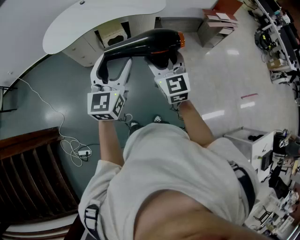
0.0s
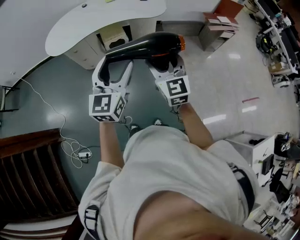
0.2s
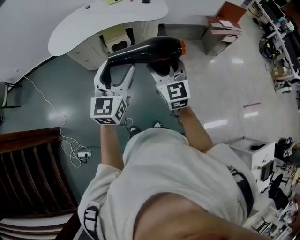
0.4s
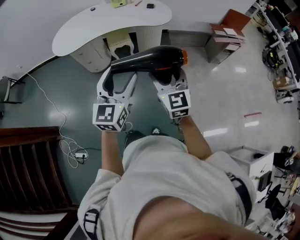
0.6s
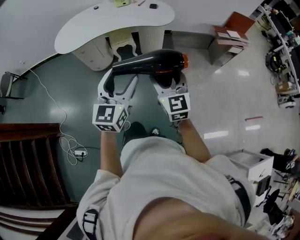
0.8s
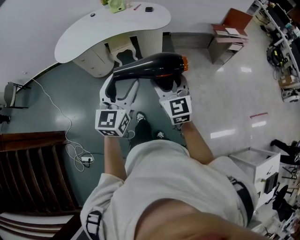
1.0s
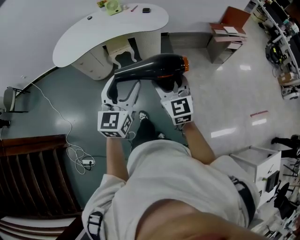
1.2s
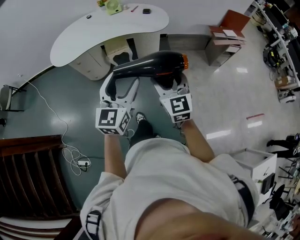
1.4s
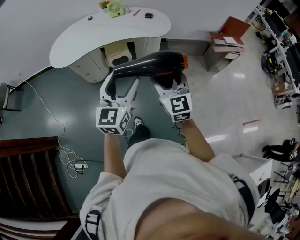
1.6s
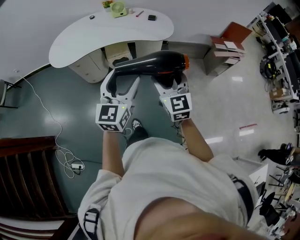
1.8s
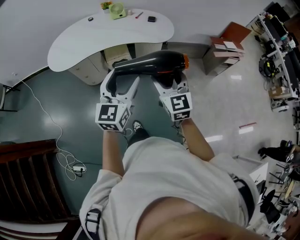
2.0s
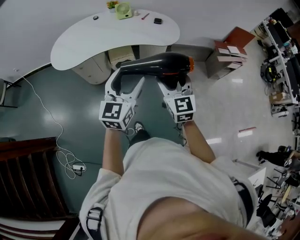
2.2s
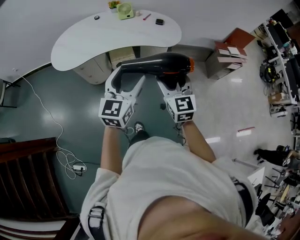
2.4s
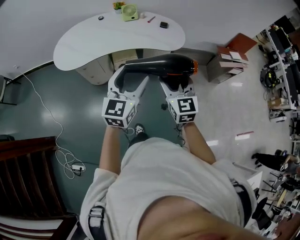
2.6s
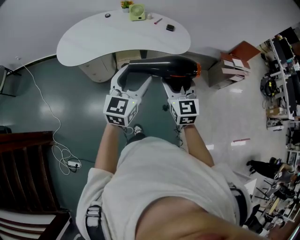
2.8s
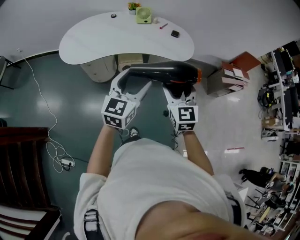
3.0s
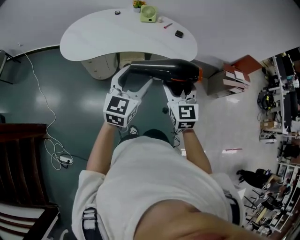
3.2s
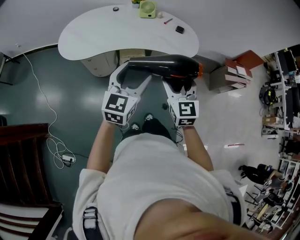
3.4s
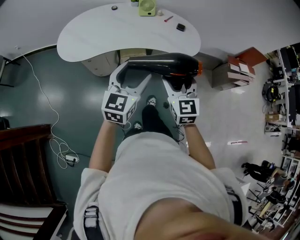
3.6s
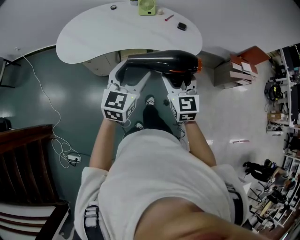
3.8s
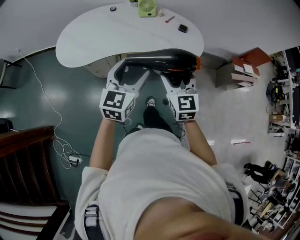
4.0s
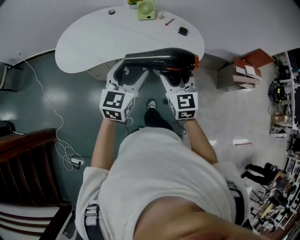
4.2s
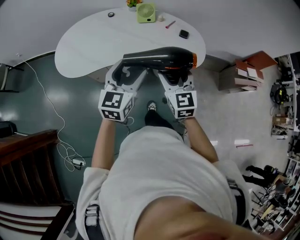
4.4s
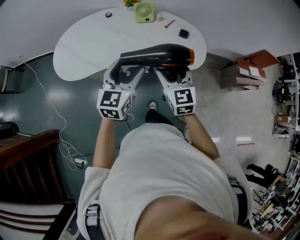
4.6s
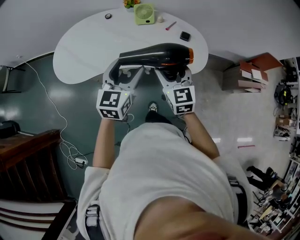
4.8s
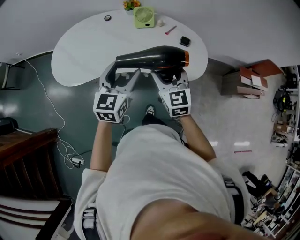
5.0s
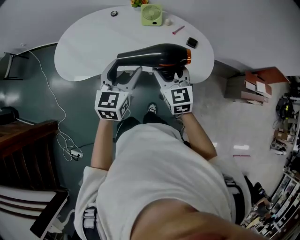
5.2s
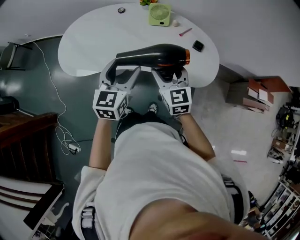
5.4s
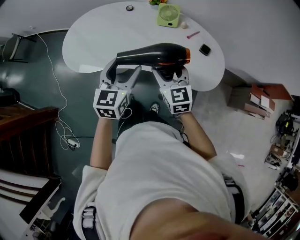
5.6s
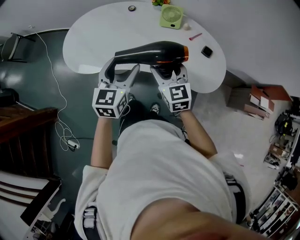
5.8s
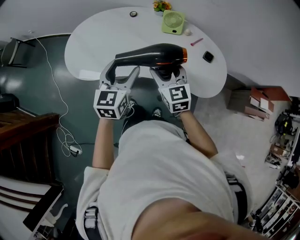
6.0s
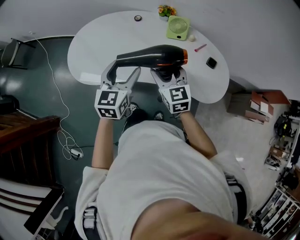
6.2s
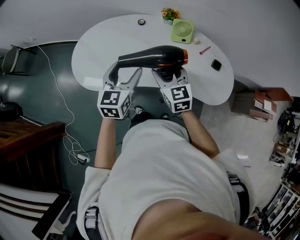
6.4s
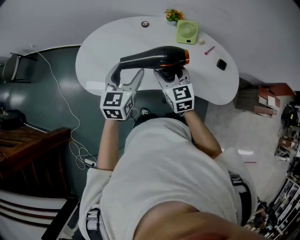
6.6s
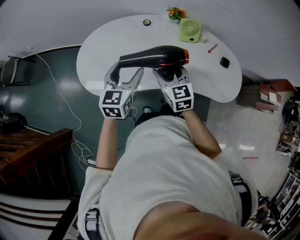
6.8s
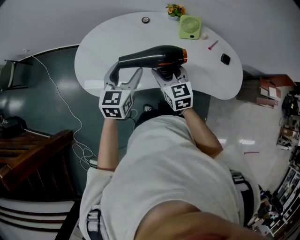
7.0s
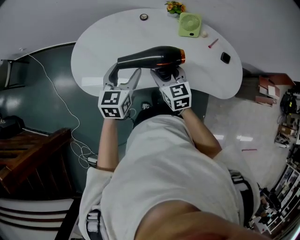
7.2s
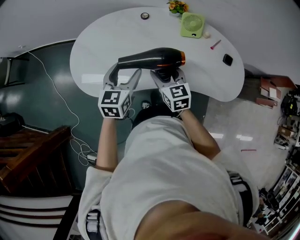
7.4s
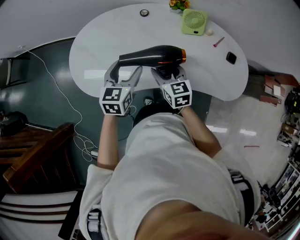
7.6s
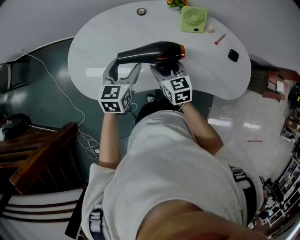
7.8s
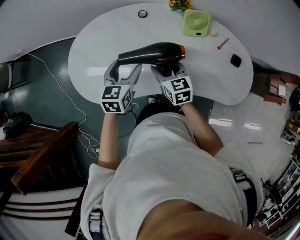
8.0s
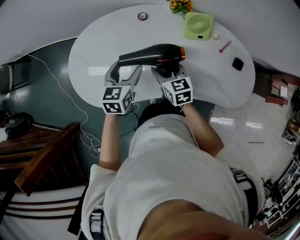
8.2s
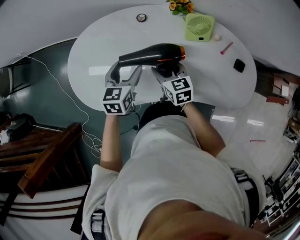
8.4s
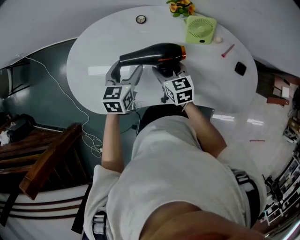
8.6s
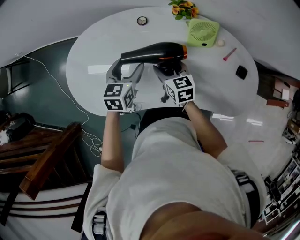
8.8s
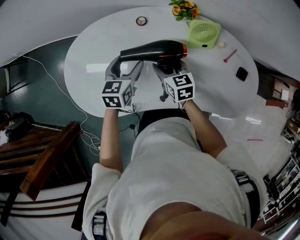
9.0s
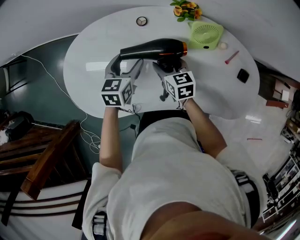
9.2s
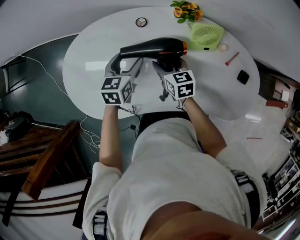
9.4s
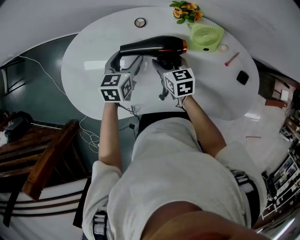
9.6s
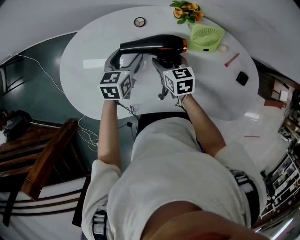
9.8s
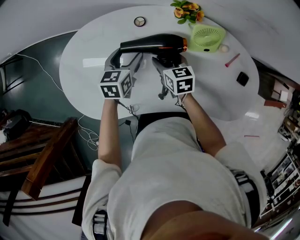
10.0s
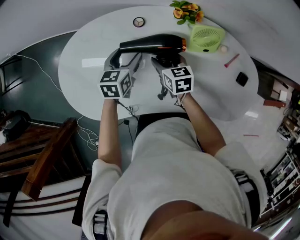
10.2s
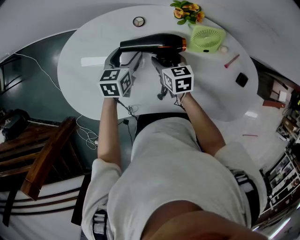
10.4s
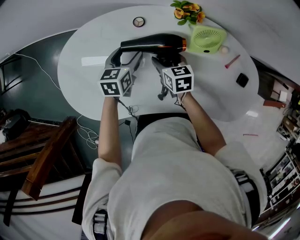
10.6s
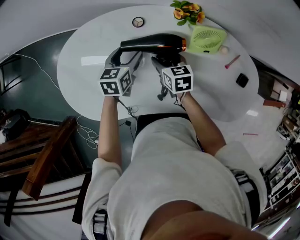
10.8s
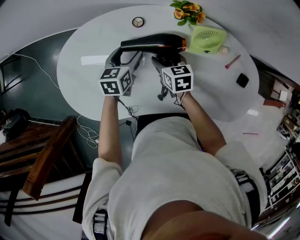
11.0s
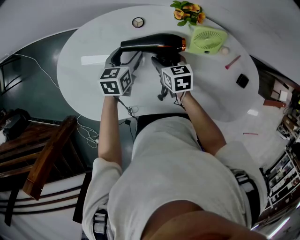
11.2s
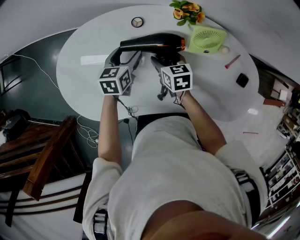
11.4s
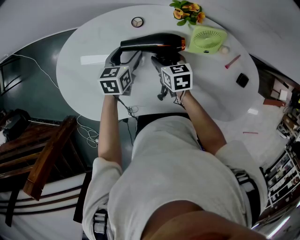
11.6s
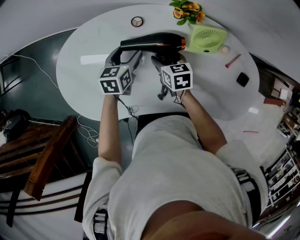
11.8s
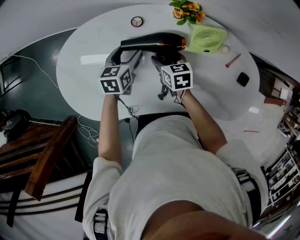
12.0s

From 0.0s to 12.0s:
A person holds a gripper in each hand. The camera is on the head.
From 0.0s to 1.6s: The grippers both shift to the right and forward by approximately 10 cm.
From 1.6s to 3.0s: The two grippers go roughly 20 cm forward and to the left.
From 3.0s to 4.4s: Both grippers travel together forward, approximately 20 cm.
From 4.4s to 6.0s: The two grippers go roughly 20 cm forward and to the left.
From 6.0s to 7.6s: The right gripper is displaced to the left, forward and downward by some 20 cm. Meanwhile the left gripper moves forward, to the left and downward, some 20 cm.
From 7.6s to 9.0s: The two grippers go approximately 20 cm forward and downward.
From 9.0s to 10.4s: The right gripper is displaced forward by roughly 5 cm. Meanwhile the left gripper shifts some 10 cm forward and downward.
From 10.4s to 12.0s: The grippers stay close to where they were, moving slightly.

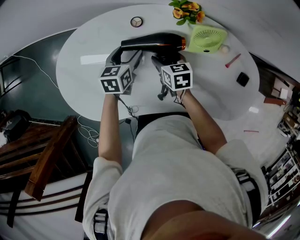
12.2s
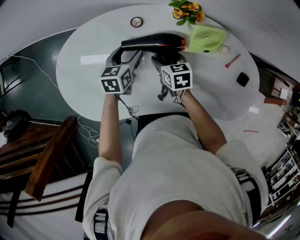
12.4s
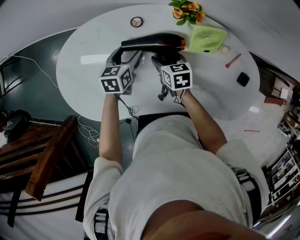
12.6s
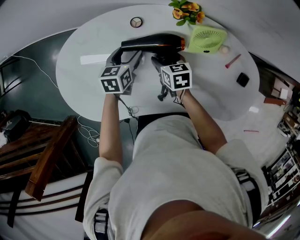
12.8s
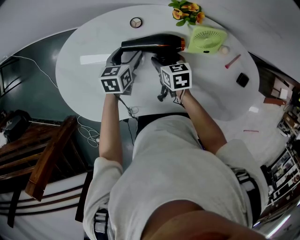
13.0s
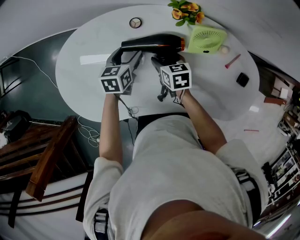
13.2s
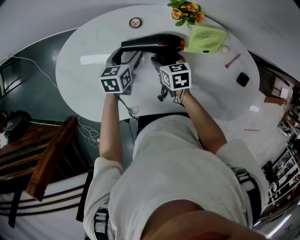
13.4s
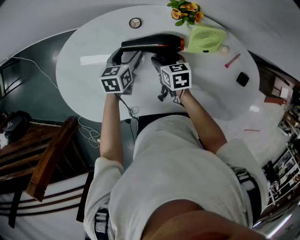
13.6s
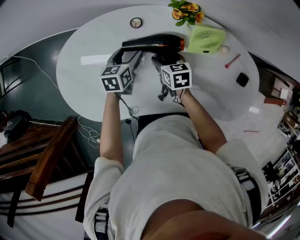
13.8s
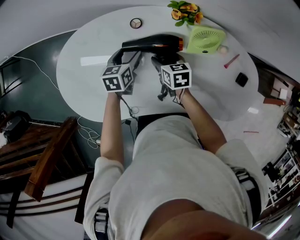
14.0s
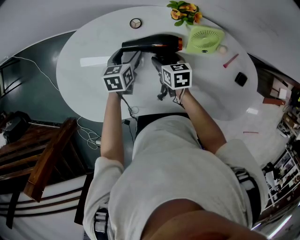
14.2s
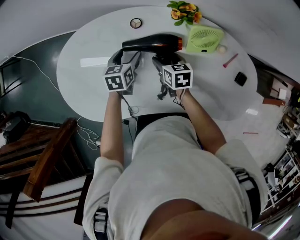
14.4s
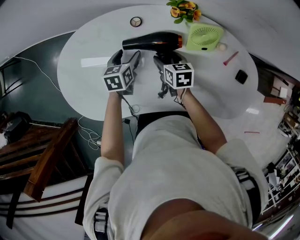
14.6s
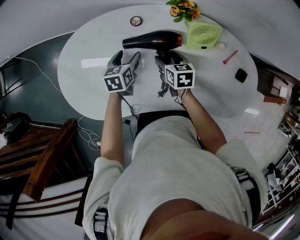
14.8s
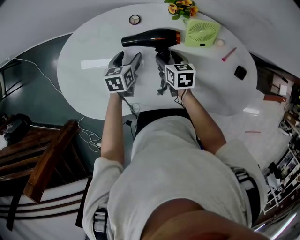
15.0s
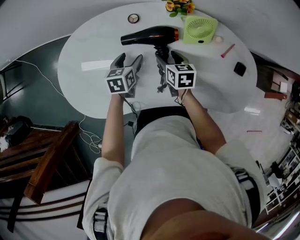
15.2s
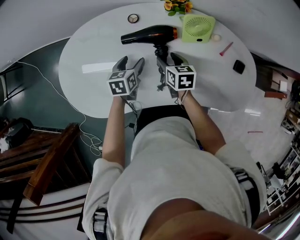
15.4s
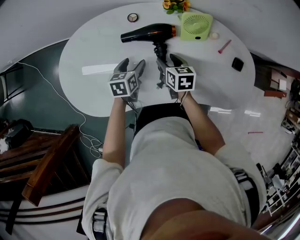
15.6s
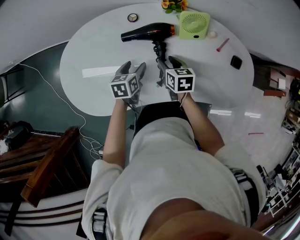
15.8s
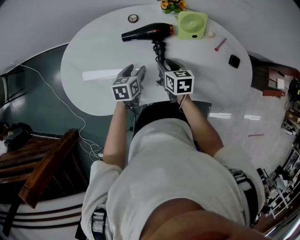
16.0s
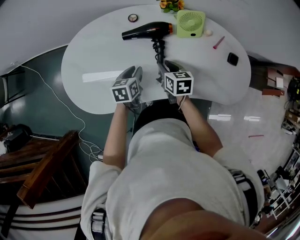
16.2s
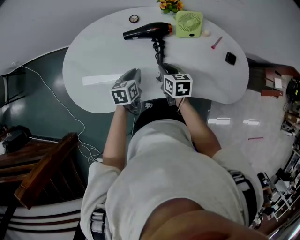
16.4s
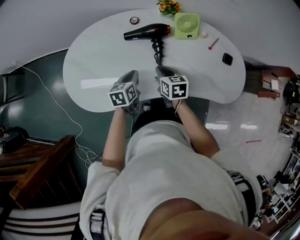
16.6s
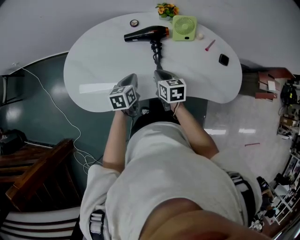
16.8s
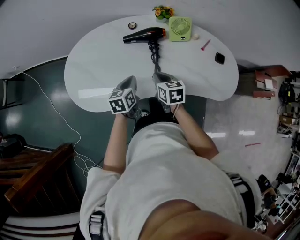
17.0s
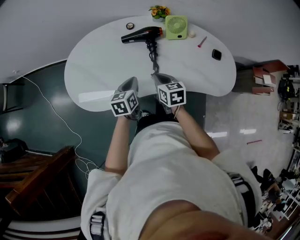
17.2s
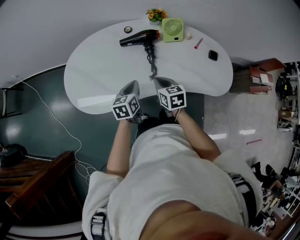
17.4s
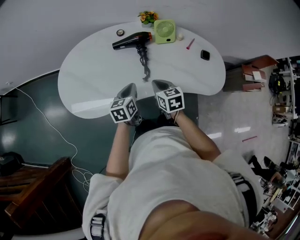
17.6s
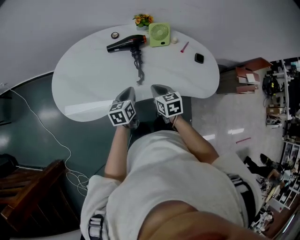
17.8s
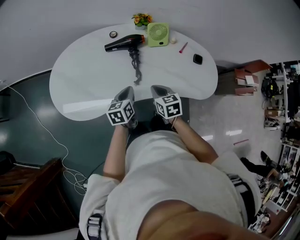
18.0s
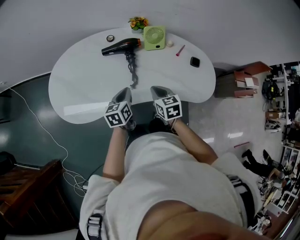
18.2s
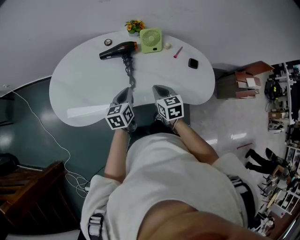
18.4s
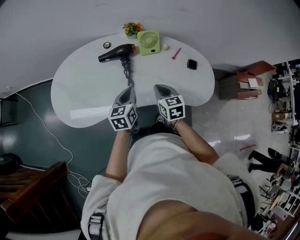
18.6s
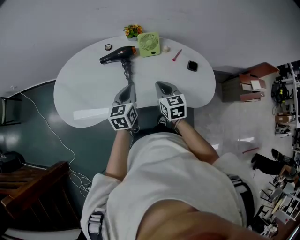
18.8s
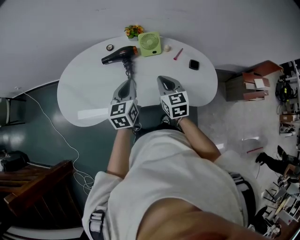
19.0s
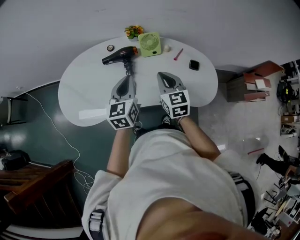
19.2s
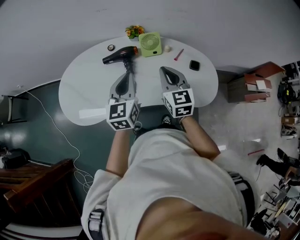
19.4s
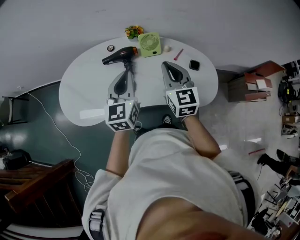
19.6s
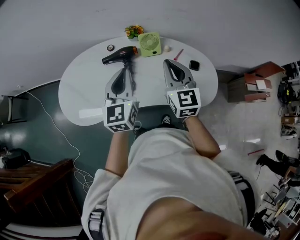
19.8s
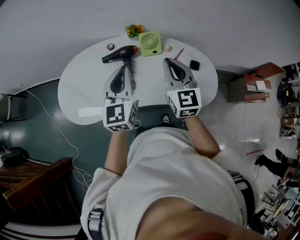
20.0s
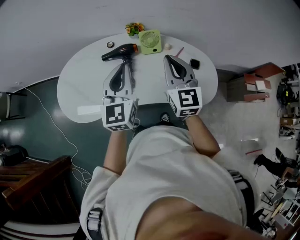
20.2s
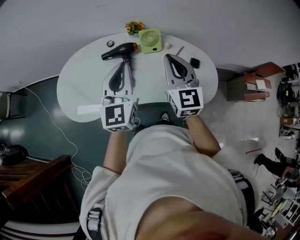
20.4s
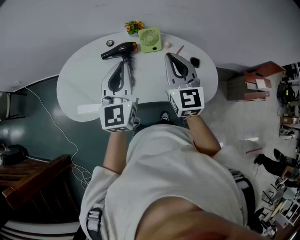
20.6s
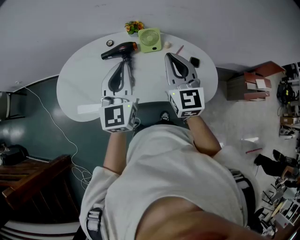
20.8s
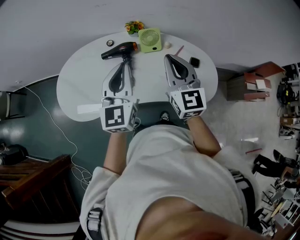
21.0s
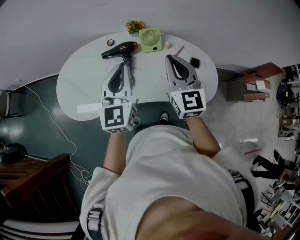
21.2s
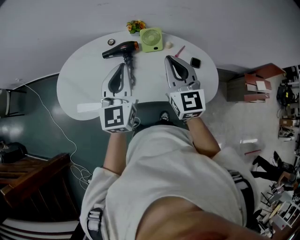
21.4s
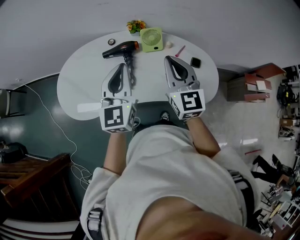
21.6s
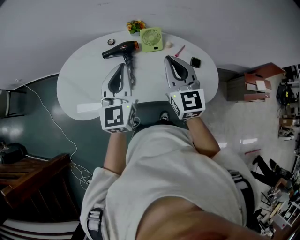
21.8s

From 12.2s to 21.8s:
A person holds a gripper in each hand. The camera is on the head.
From 12.2s to 13.8s: The grippers make only small movements.
From 13.8s to 15.4s: The two grippers go roughly 5 cm backward.
From 15.4s to 17.0s: Both grippers travel together backward and upward, roughly 20 cm. The left gripper closes. Meanwhile the right gripper closes its fingers.
From 17.0s to 18.6s: The right gripper is displaced to the right by about 15 cm. Meanwhile the left gripper shifts some 15 cm to the right and upward.
From 18.6s to 20.2s: The grippers both shift upward by about 20 cm. The left gripper rotates about 30 degrees. Meanwhile the right gripper tips its fingers upward by roughly 30 degrees.
From 20.2s to 21.8s: The grippers move only a little.

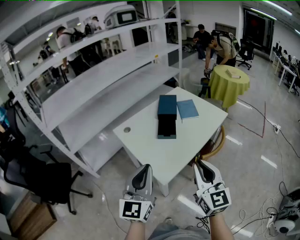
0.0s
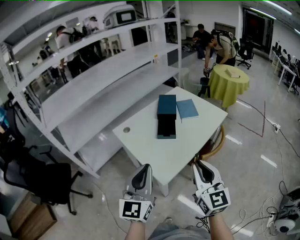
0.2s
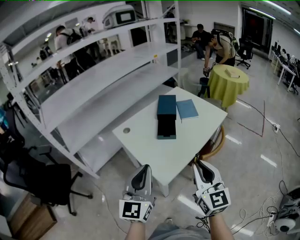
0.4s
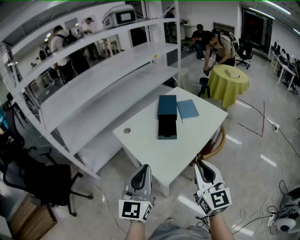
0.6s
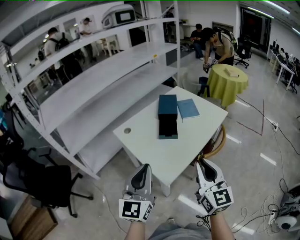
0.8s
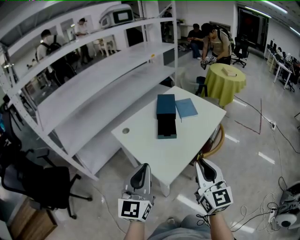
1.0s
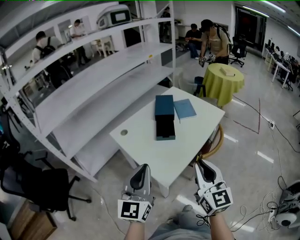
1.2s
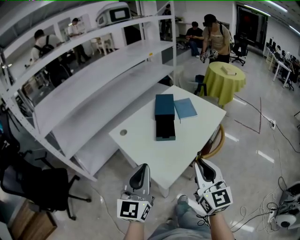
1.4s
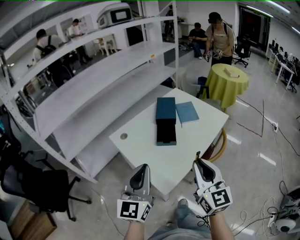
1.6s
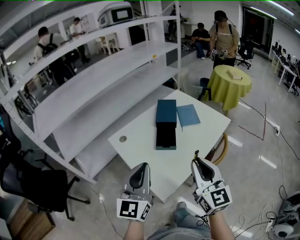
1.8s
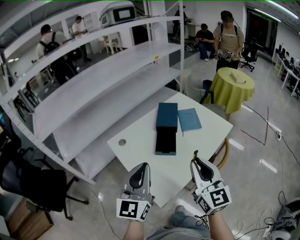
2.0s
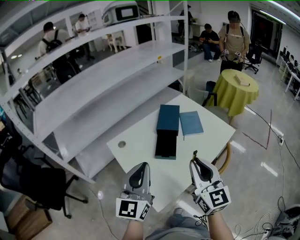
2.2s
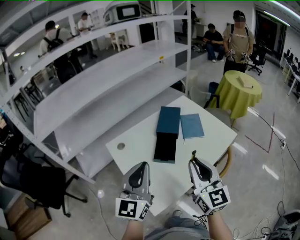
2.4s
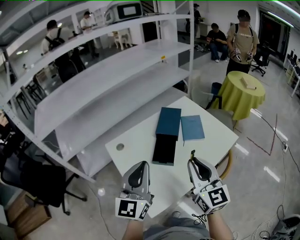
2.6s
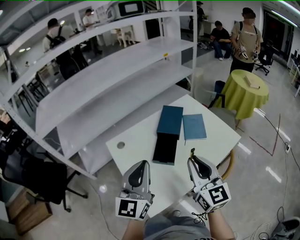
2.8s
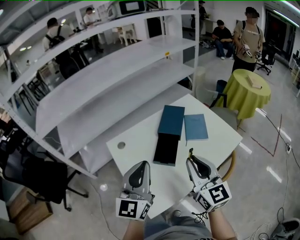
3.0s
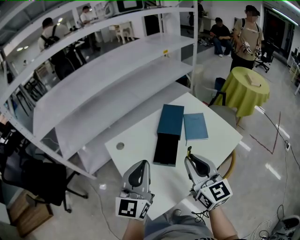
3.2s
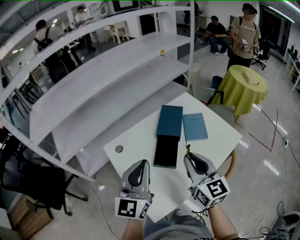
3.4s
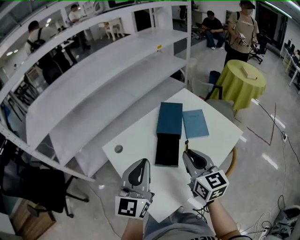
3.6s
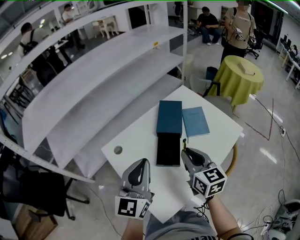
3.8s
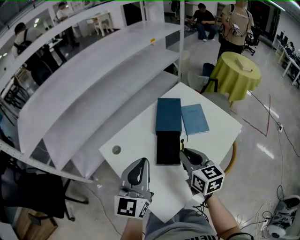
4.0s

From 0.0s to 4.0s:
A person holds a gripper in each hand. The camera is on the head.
From 0.0s to 1.4s: There are only small adjustments of the grippers.
From 1.4s to 2.6s: Both grippers travel together forward, some 15 cm.
From 2.6s to 4.0s: The right gripper goes approximately 15 cm forward and downward, and rotates approximately 30 degrees. Meanwhile the left gripper travels forward by roughly 10 cm.
